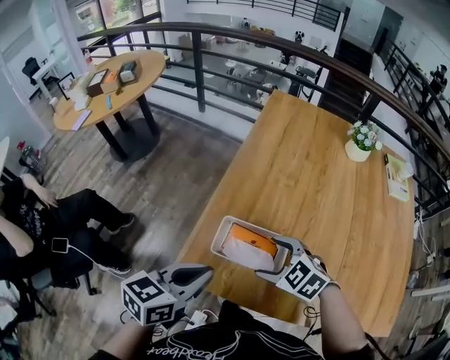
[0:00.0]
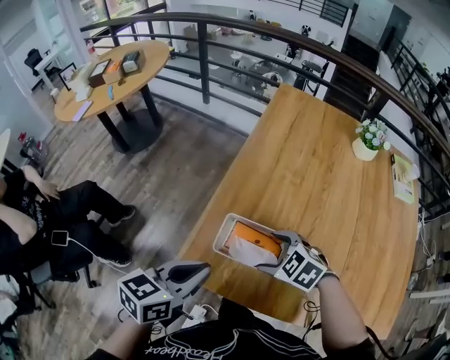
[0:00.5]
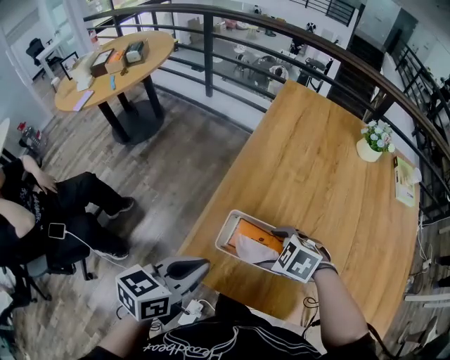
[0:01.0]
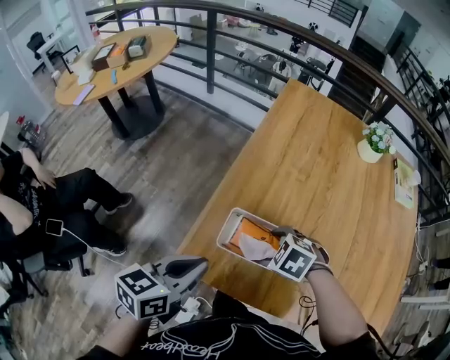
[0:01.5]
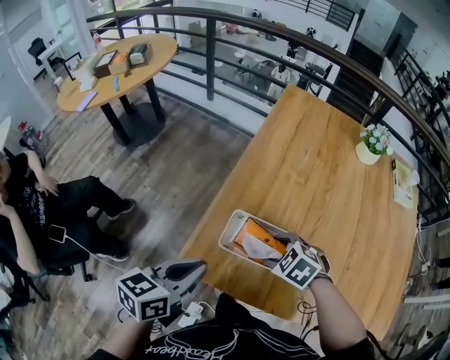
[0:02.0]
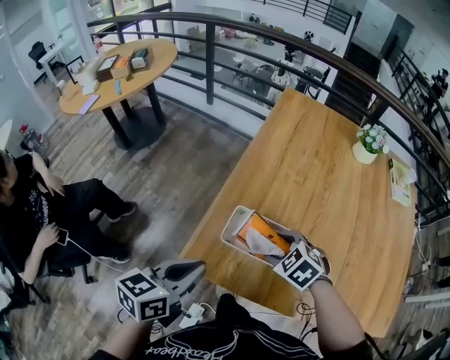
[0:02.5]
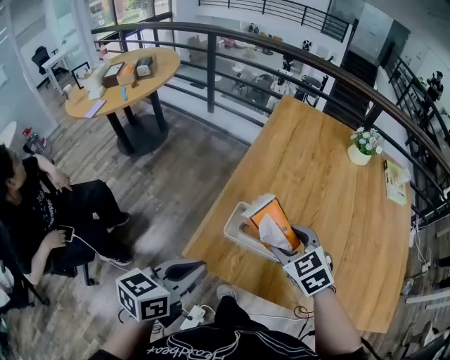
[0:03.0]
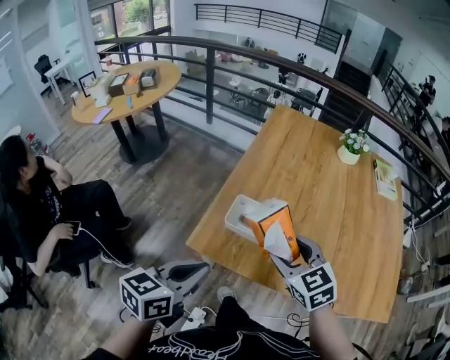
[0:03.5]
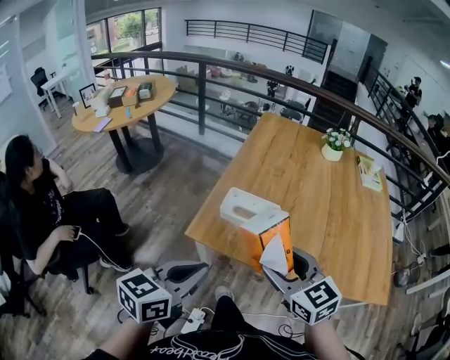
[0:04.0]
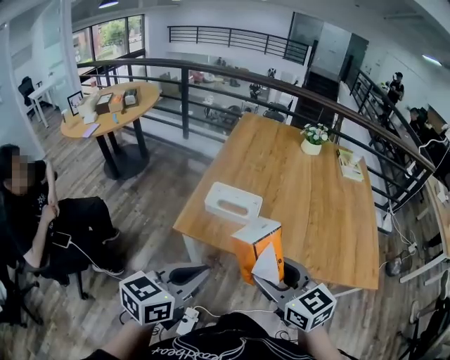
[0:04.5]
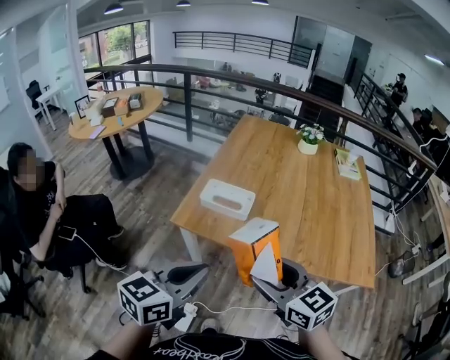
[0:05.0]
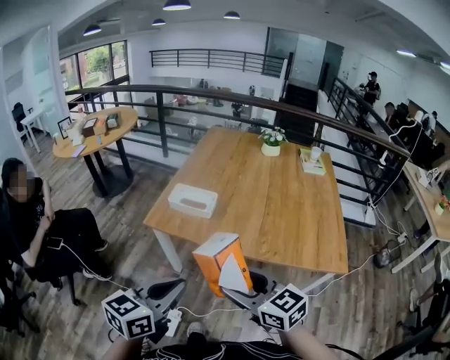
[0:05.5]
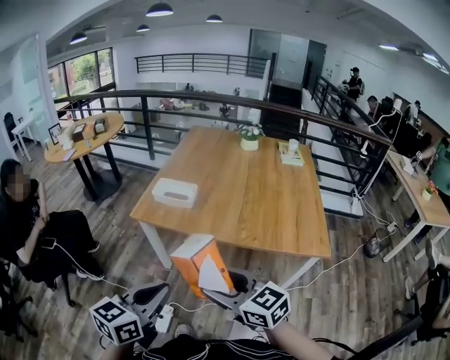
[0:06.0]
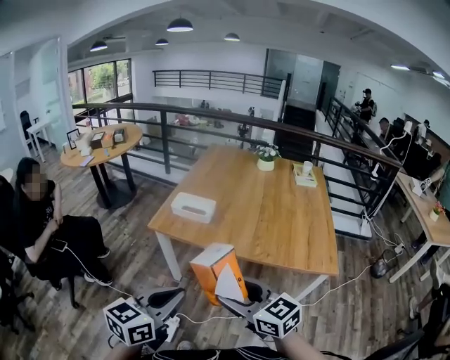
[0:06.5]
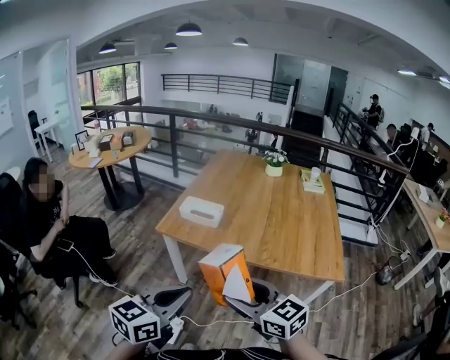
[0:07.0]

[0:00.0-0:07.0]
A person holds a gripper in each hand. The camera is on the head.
0:00.0 to 0:02.0: The left gripper moves approximately 5 cm. The right gripper shifts about 5 cm downward.
0:02.0 to 0:03.5: The right gripper heads upward and backward, covering about 20 cm, and points its fingers some 30 degrees further upward. Meanwhile the left gripper heads backward and upward, covering about 15 cm.
0:03.5 to 0:05.0: The right gripper moves backward, approximately 30 cm, and turns by approximately 20 degrees; the left gripper shifts about 25 cm backward and to the right.
0:05.0 to 0:07.0: The grippers both shift backward by roughly 20 cm.

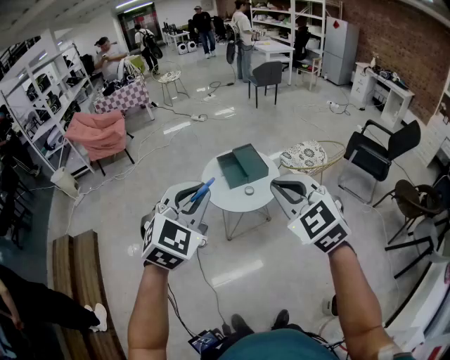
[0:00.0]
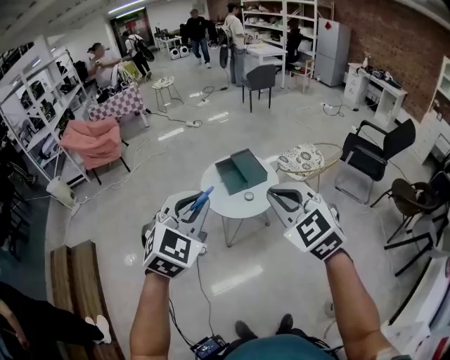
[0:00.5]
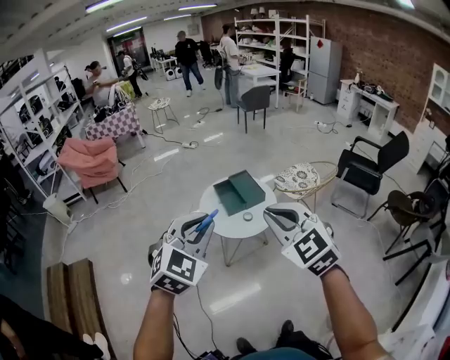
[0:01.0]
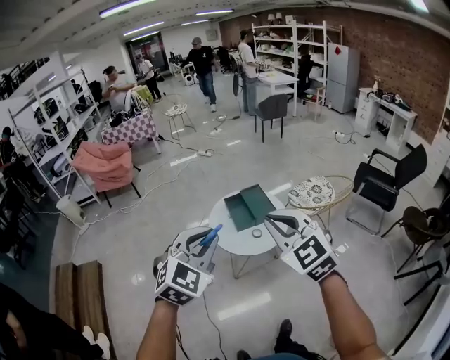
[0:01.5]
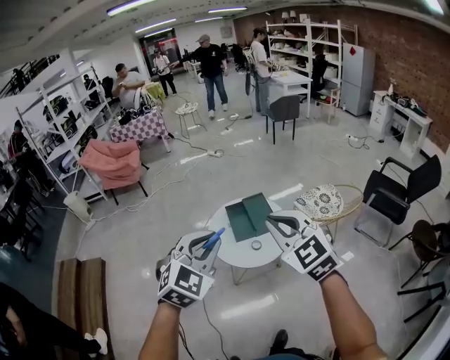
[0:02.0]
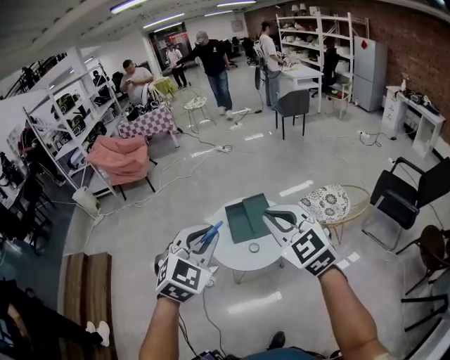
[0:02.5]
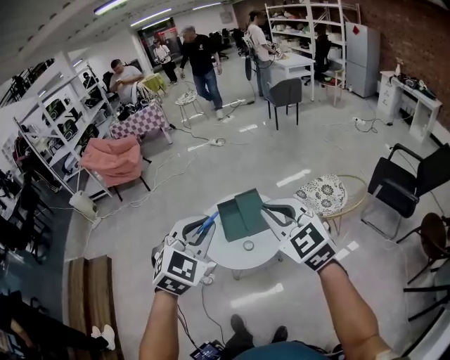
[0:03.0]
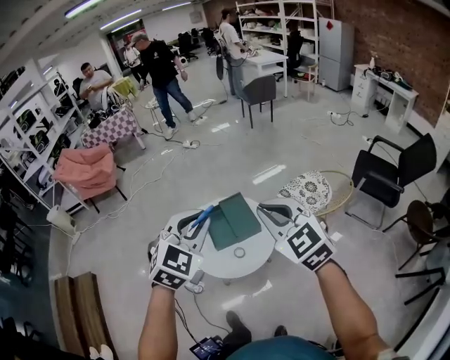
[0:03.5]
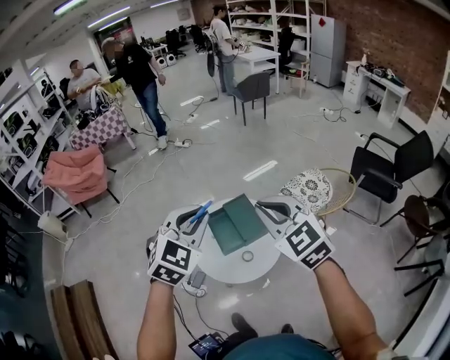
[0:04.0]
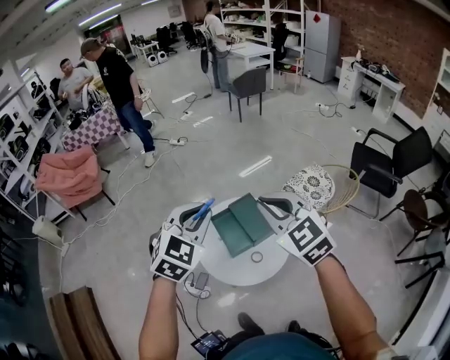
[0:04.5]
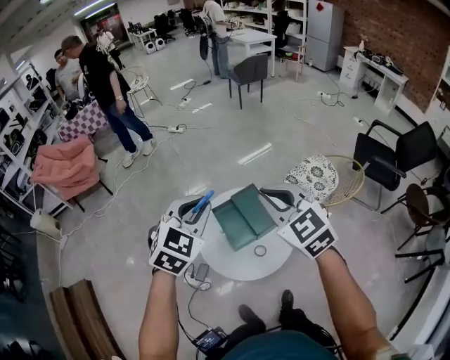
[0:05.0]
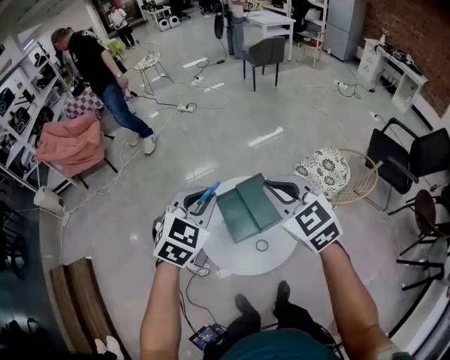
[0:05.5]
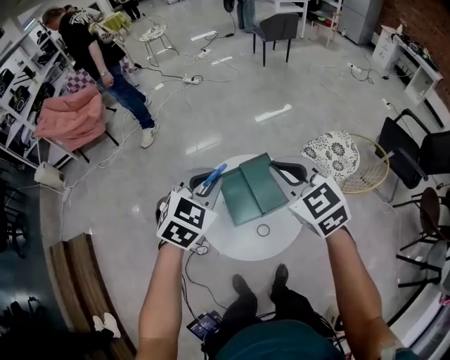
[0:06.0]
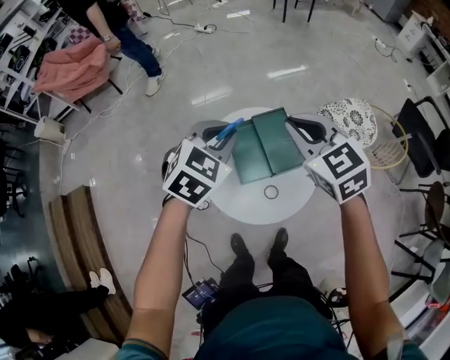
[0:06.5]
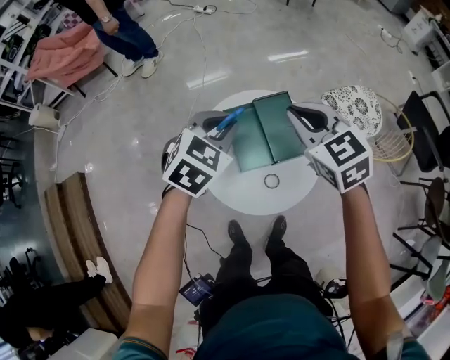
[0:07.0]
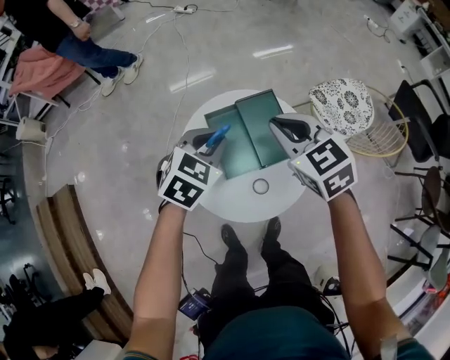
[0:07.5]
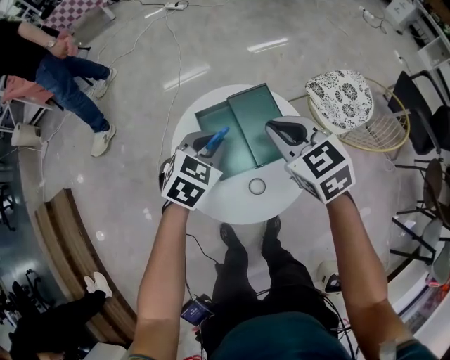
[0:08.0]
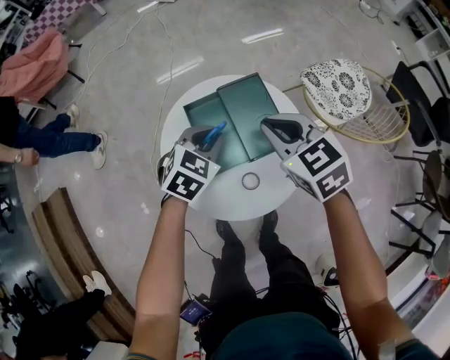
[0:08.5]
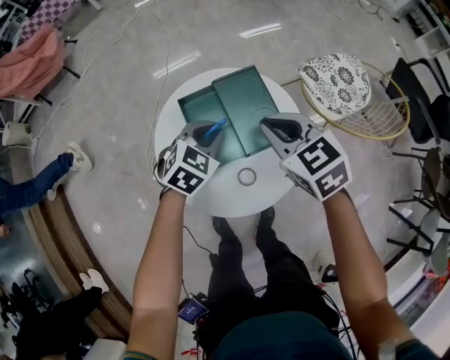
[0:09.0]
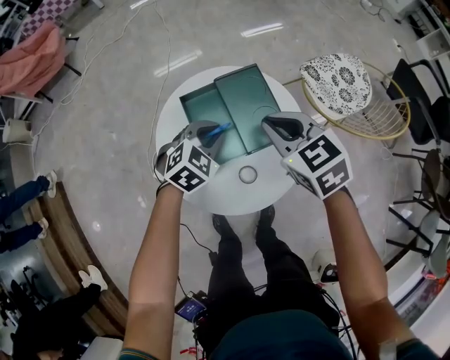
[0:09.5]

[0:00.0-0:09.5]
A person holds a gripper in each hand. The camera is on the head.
0:00.0 to 0:02.0: The left gripper is displaced forward and to the right by approximately 25 cm; the right gripper heads forward, covering about 25 cm.
0:02.0 to 0:04.0: Both grippers travel together forward, roughly 40 cm.
0:04.0 to 0:05.5: The left gripper shifts approximately 25 cm forward, downward and to the left. Meanwhile the right gripper heads forward and downward, covering about 25 cm.
0:05.5 to 0:07.5: The right gripper moves downward and forward, about 40 cm, while the left gripper travels downward by roughly 35 cm.
0:07.5 to 0:09.5: Both grippers travel together downward, about 15 cm.

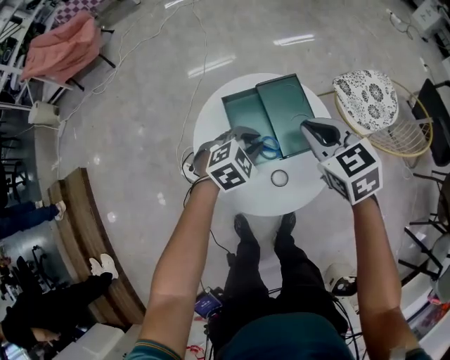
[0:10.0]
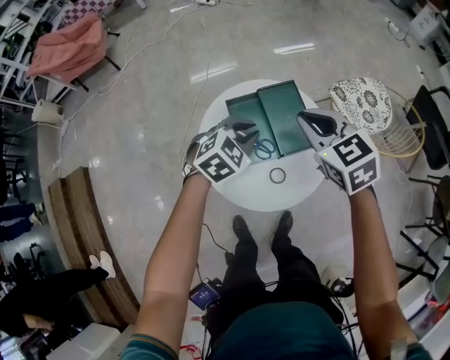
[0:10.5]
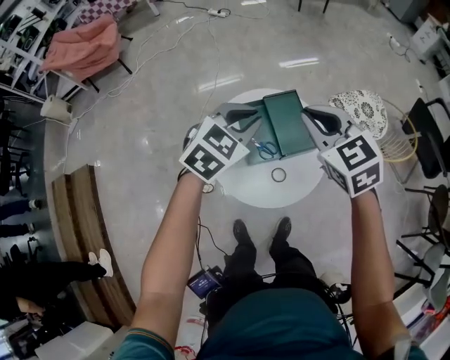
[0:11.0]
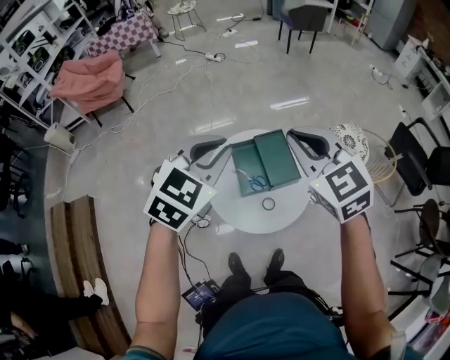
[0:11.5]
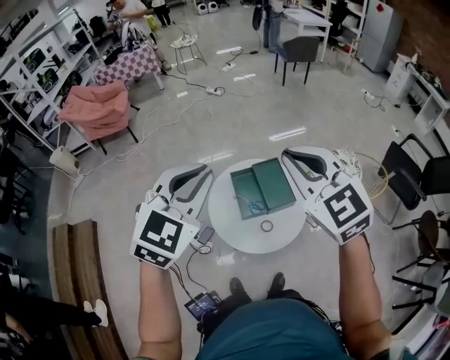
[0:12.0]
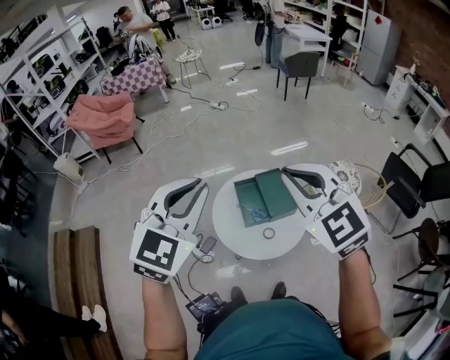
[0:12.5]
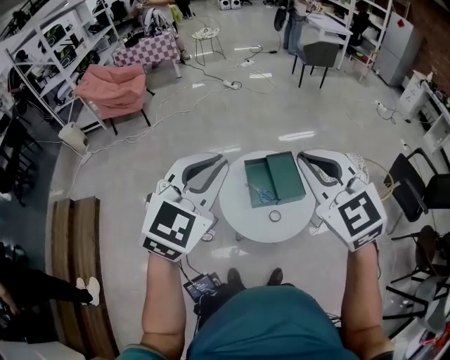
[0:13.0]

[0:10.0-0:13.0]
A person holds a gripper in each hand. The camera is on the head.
0:10.0 to 0:11.5: The right gripper goes approximately 50 cm upward and backward, and rotates roughly 20 degrees. The left gripper shifts approximately 50 cm upward, and turns by roughly 30 degrees.
0:11.5 to 0:13.0: Both grippers move backward and upward, about 25 cm.

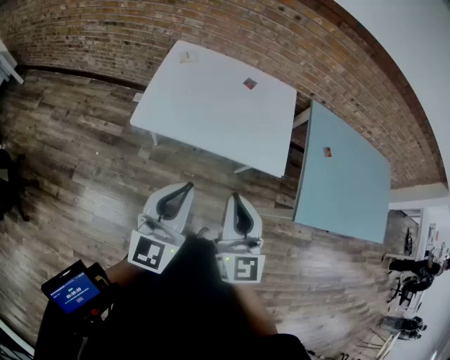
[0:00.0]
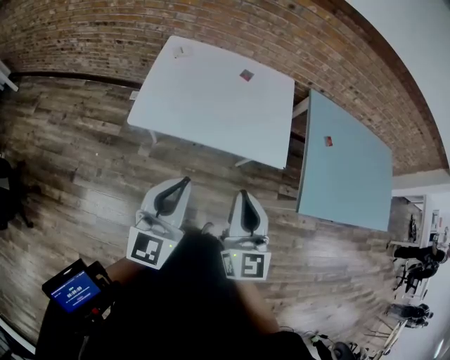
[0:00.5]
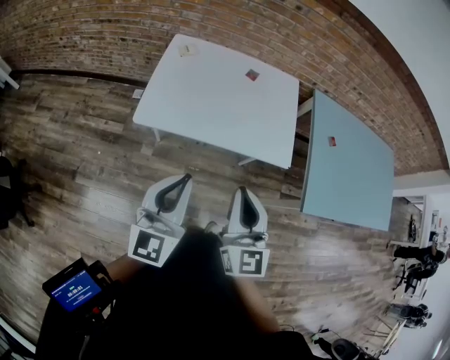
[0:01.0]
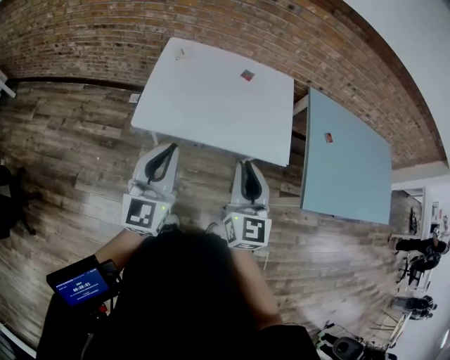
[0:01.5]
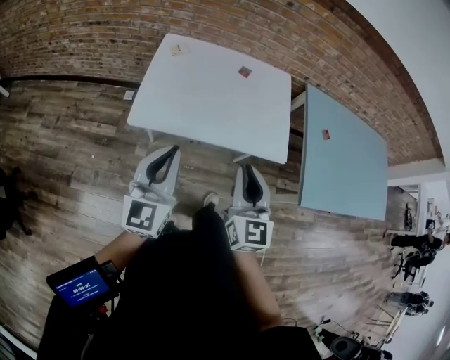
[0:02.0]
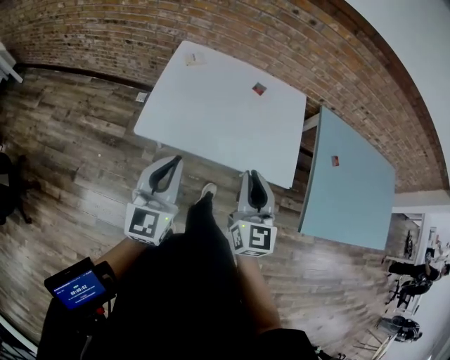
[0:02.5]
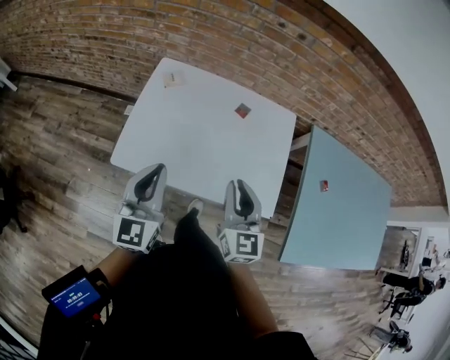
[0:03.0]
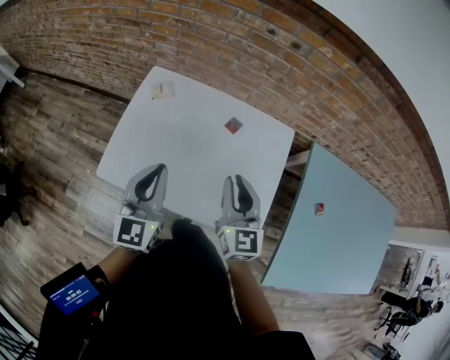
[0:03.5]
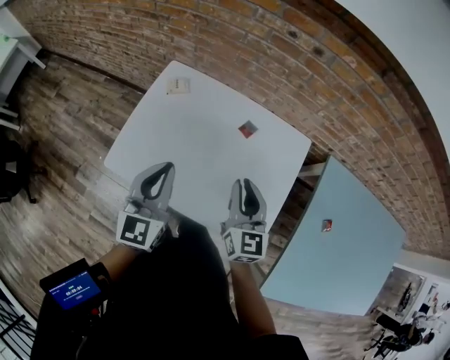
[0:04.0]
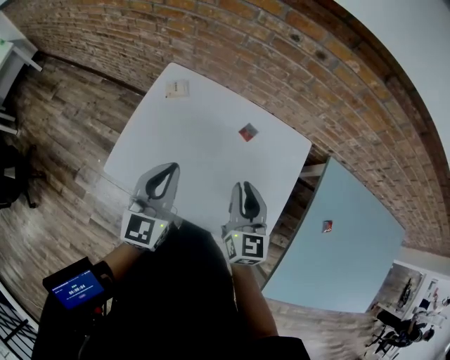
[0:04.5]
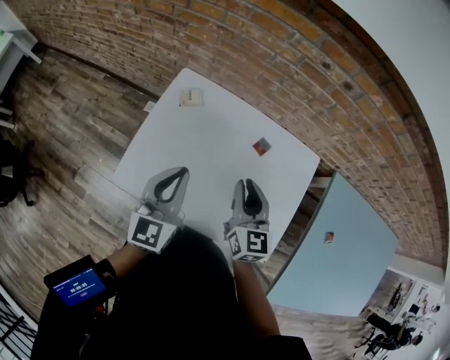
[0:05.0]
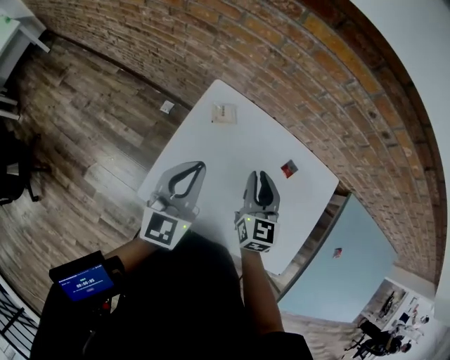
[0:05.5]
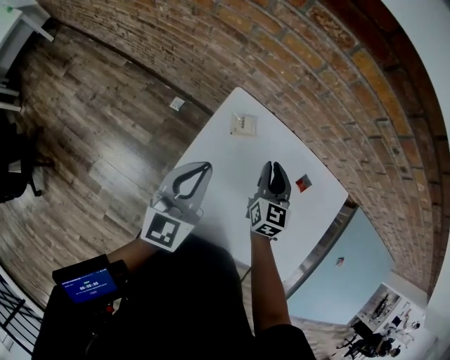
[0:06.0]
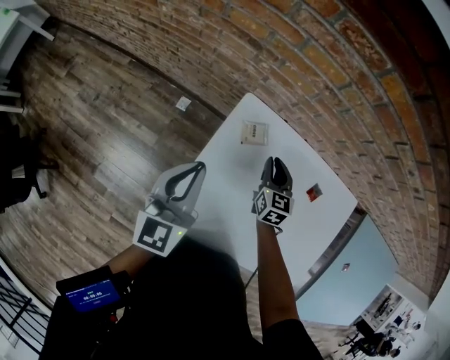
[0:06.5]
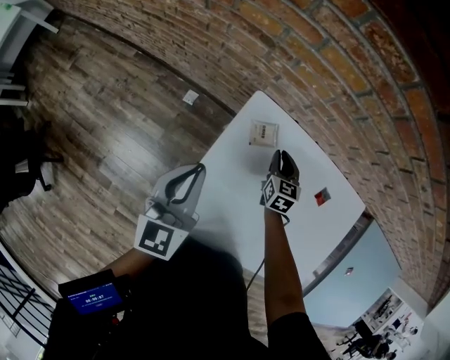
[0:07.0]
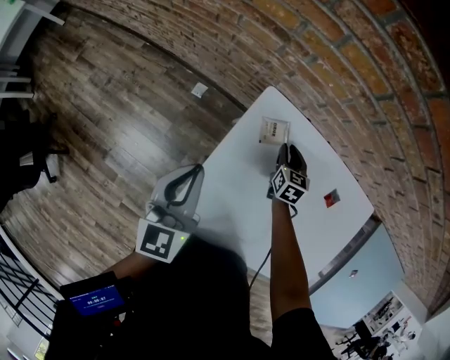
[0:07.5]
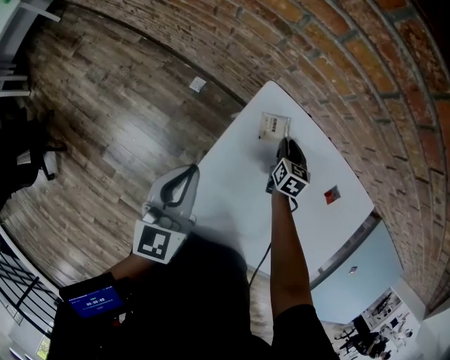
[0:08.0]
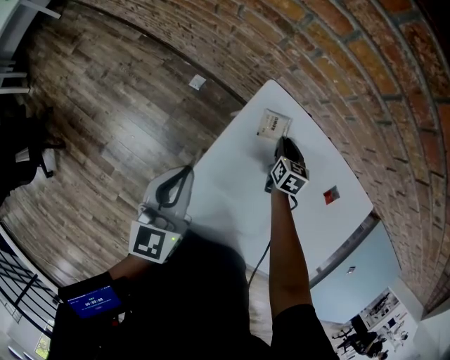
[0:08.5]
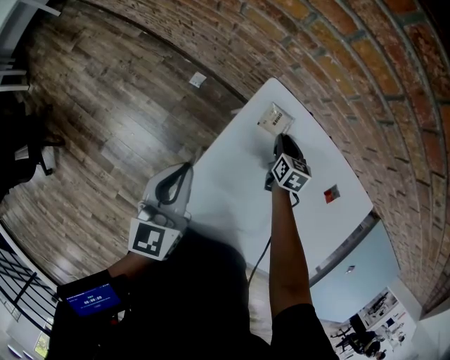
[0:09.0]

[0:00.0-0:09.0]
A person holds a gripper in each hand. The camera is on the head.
0:00.0 to 0:02.0: The left gripper moves to the left and forward, approximately 10 cm. Meanwhile the right gripper heads forward, covering some 5 cm.
0:02.0 to 0:04.5: The right gripper goes roughly 30 cm forward, and rotates some 20 degrees, while the left gripper goes approximately 30 cm forward and to the right.
0:04.5 to 0:07.0: The right gripper is displaced forward, downward and to the left by approximately 40 cm, and changes its angle by about 20 degrees. The left gripper is displaced to the left and forward by about 35 cm.
0:07.0 to 0:09.0: The right gripper travels downward by roughly 5 cm; the left gripper ends up about 5 cm from where it was.
